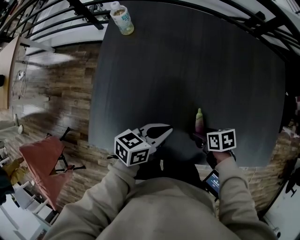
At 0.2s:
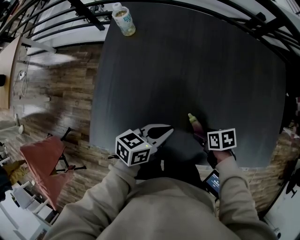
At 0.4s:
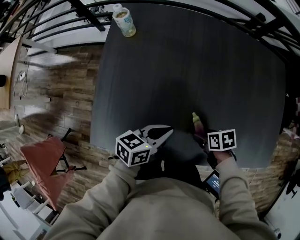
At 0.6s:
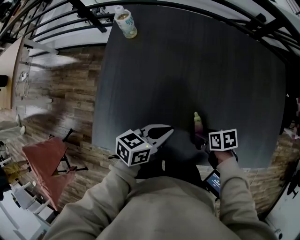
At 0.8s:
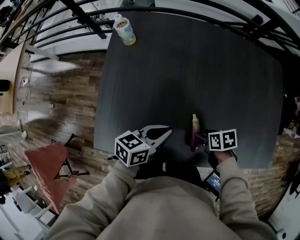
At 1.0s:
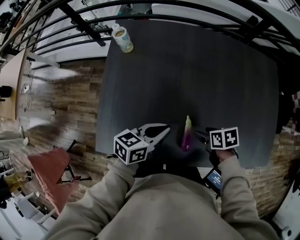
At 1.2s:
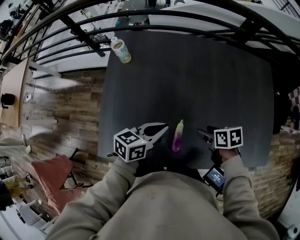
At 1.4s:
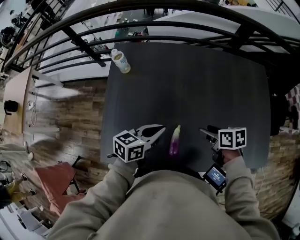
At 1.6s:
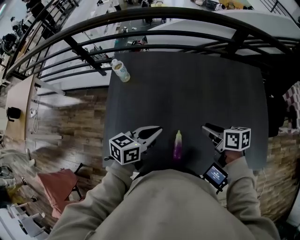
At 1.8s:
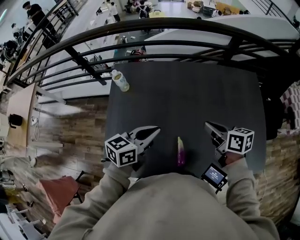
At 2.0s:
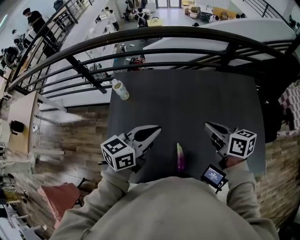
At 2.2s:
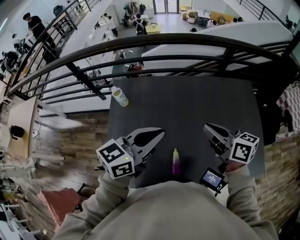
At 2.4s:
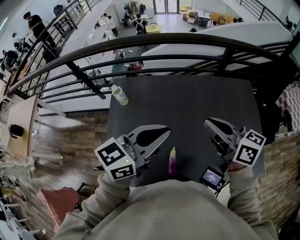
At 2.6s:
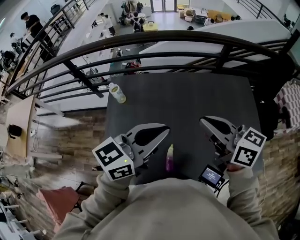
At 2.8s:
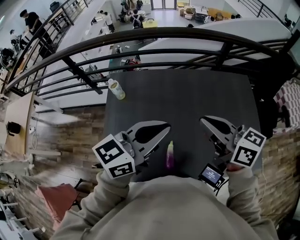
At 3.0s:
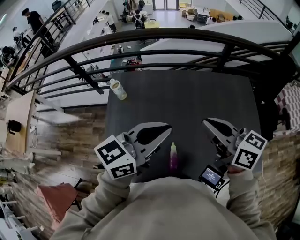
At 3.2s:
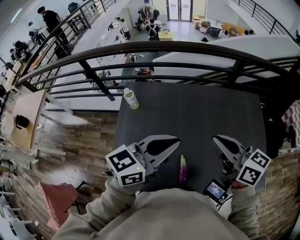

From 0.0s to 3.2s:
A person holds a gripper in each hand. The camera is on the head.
From 0.0s to 1.6s: The left gripper heads upward, covering some 10 cm, while the right gripper is displaced upward by about 20 cm, rotates approximately 30 degrees, and closes.
From 1.6s to 3.2s: The grippers both shift upward by about 20 cm. The right gripper changes its angle by about 30 degrees, and closes up. The left gripper changes its angle by roughly 20 degrees.

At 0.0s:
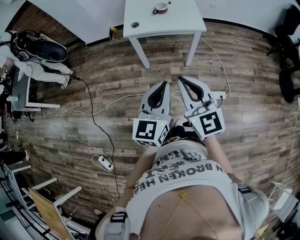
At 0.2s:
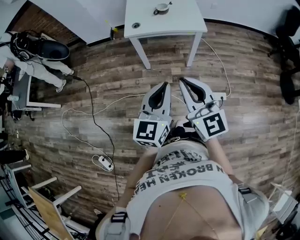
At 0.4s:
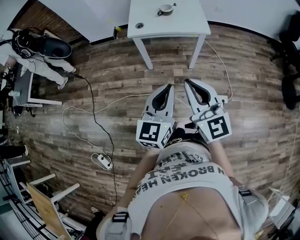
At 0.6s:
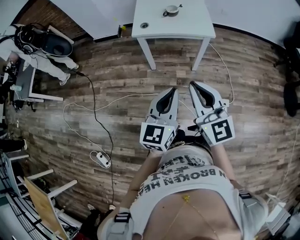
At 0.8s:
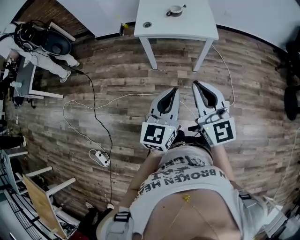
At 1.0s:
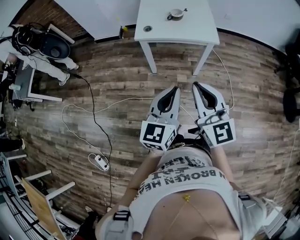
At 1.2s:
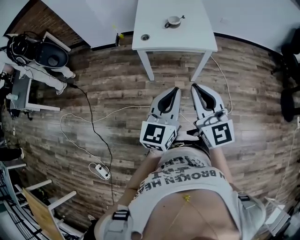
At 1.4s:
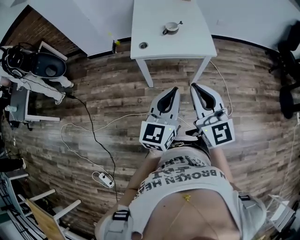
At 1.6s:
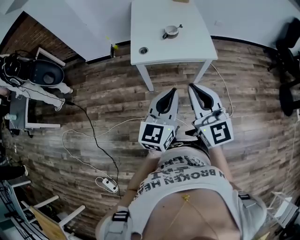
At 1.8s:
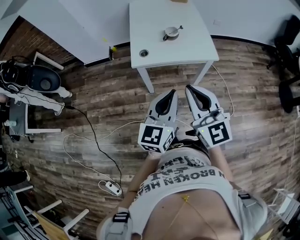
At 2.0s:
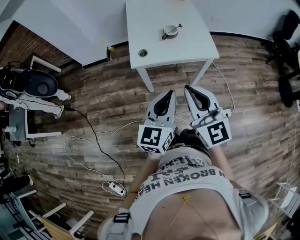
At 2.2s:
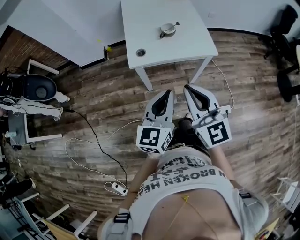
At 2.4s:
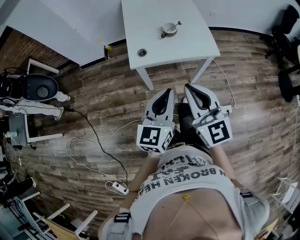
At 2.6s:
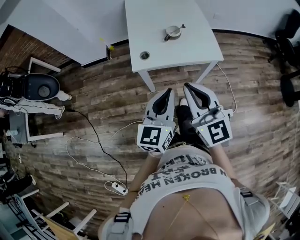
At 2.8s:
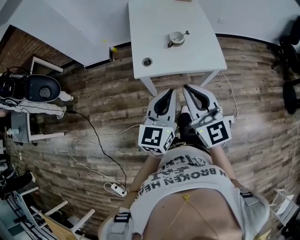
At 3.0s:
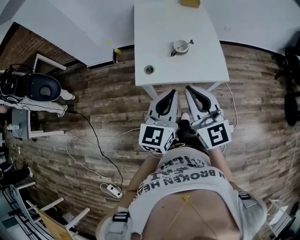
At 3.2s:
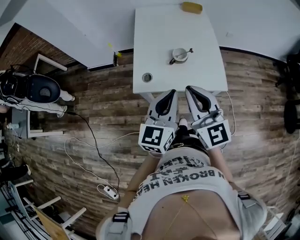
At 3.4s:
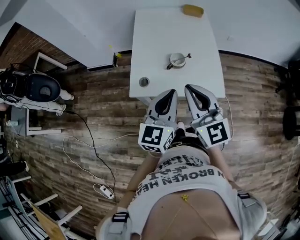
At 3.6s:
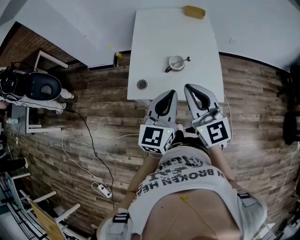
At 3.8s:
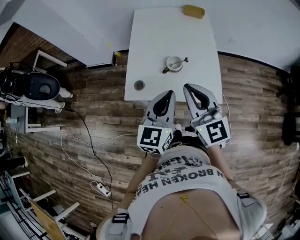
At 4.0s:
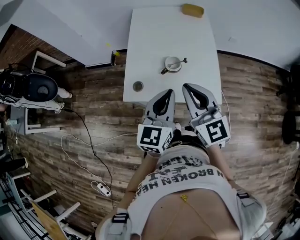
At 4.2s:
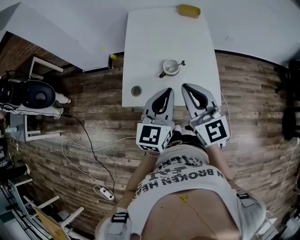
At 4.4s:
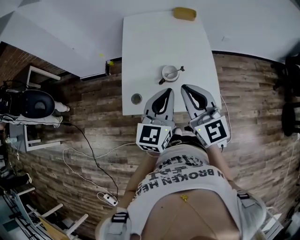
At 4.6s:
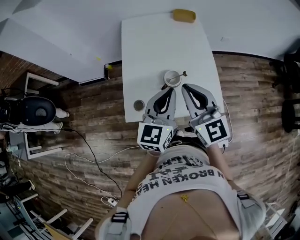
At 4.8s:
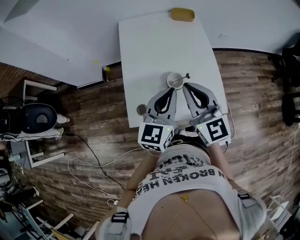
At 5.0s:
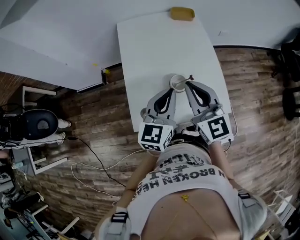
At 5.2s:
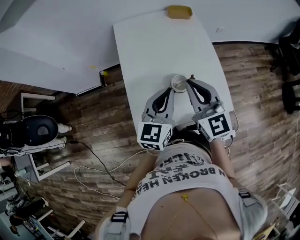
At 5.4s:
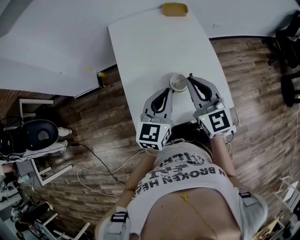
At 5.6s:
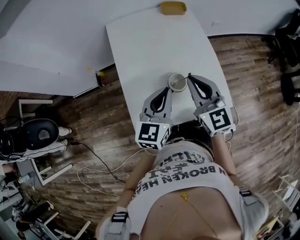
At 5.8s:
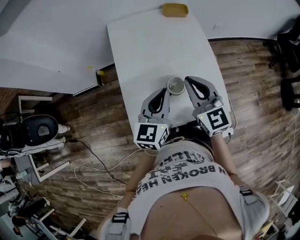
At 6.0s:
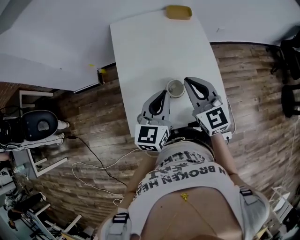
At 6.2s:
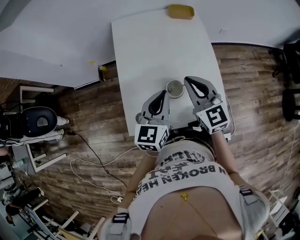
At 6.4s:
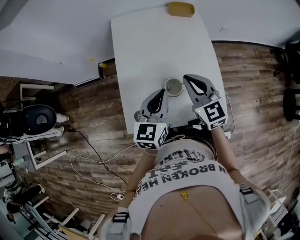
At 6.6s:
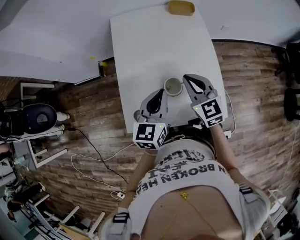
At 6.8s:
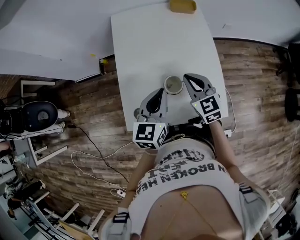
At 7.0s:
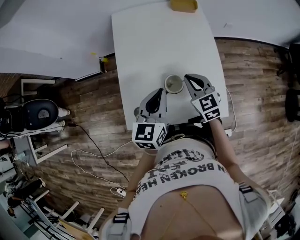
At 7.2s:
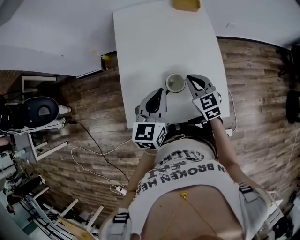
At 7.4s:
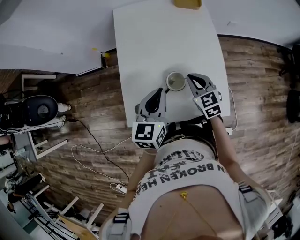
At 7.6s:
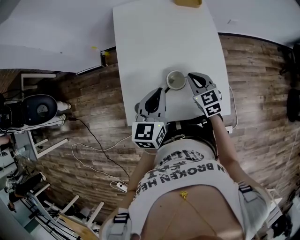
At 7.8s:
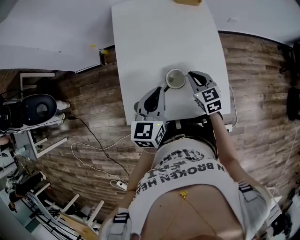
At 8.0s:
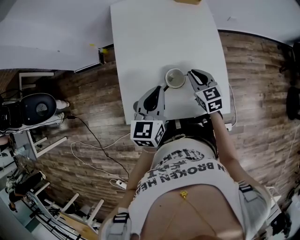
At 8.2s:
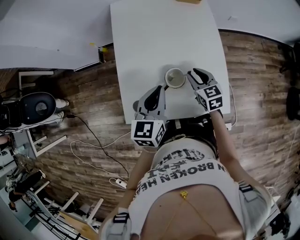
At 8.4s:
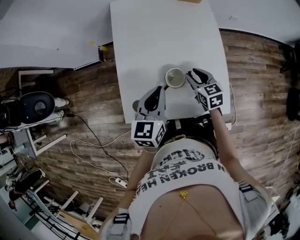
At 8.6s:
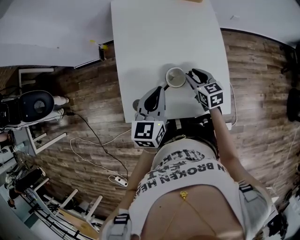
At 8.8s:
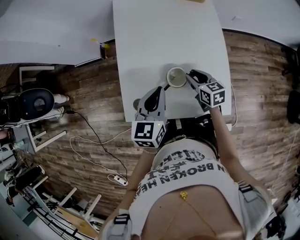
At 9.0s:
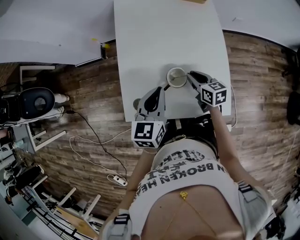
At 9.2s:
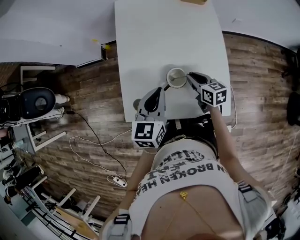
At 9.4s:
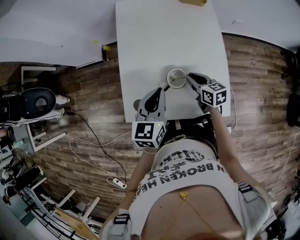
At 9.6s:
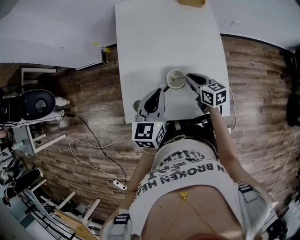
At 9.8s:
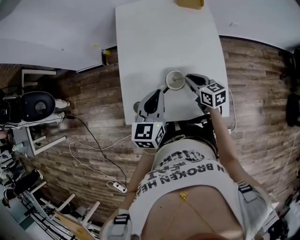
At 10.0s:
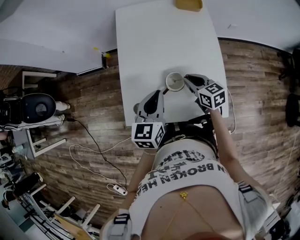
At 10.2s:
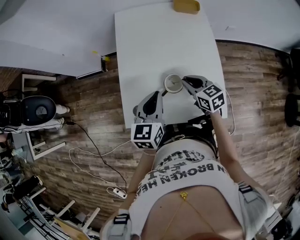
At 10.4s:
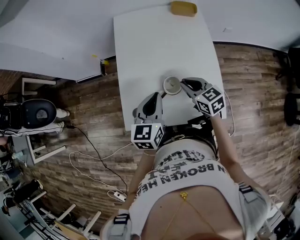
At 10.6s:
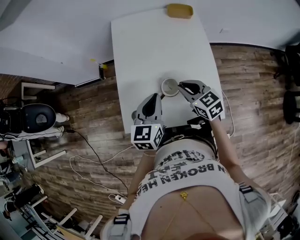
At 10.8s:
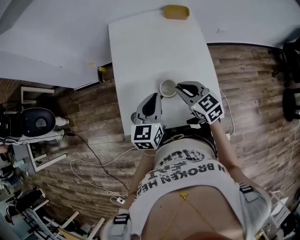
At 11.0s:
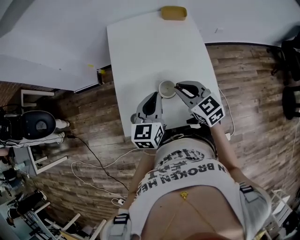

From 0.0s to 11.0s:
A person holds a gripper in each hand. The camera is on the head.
From 0.0s to 1.6s: Both grippers move forward, approximately 20 cm.
From 1.6s to 3.2s: The grippers both shift forward by about 25 cm.
From 3.2s to 4.8s: The two grippers go some 20 cm forward.
From 4.8s to 6.2s: The right gripper travels forward and downward by approximately 10 cm, while the left gripper travels forward by some 5 cm.
From 6.2s to 7.8s: The right gripper heads downward, covering some 15 cm, and changes its angle by approximately 20 degrees.
From 7.8s to 9.4s: The right gripper rotates some 30 degrees, and opens and closes again.
From 9.4s to 11.0s: The right gripper goes some 15 cm upward, and swivels roughly 30 degrees.

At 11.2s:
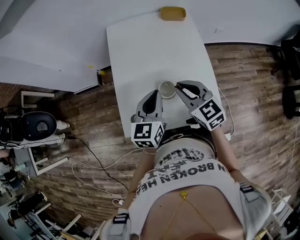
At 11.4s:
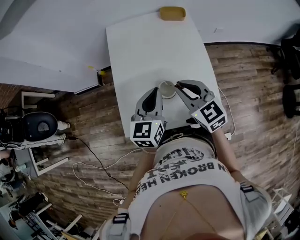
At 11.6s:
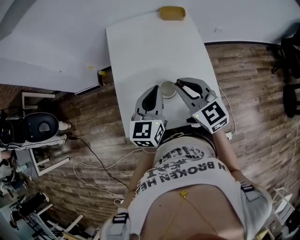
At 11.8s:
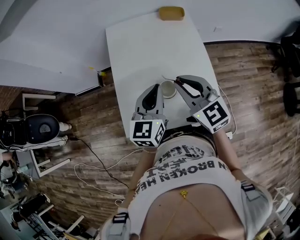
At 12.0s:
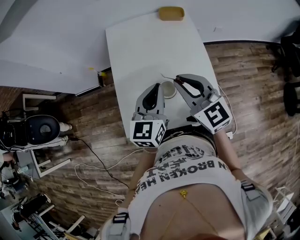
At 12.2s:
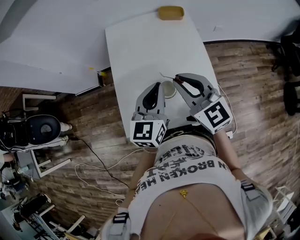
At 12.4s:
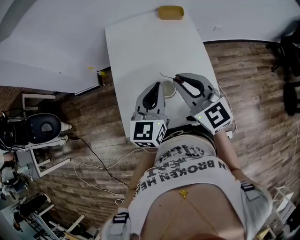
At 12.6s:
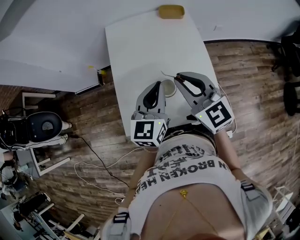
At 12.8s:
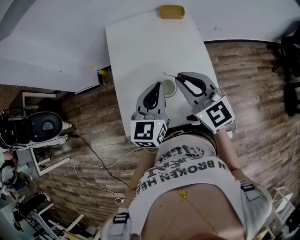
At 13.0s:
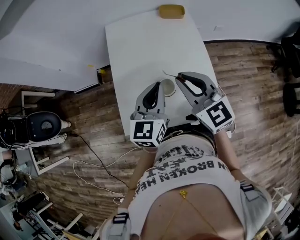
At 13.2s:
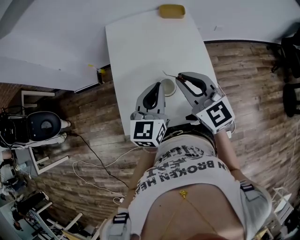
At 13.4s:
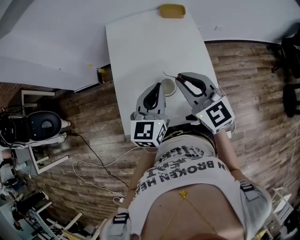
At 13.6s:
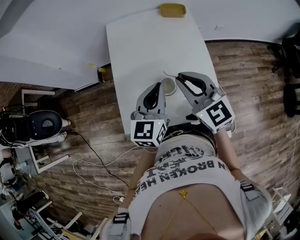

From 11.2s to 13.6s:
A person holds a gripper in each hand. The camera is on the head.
From 11.2s to 12.4s: The left gripper moves upward, approximately 5 cm. Meanwhile the right gripper is displaced upward by some 10 cm.
From 12.4s to 13.6s: Both grippers stay about where they are.

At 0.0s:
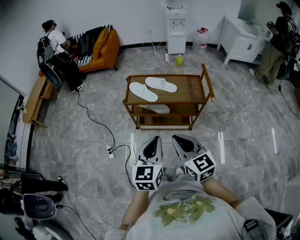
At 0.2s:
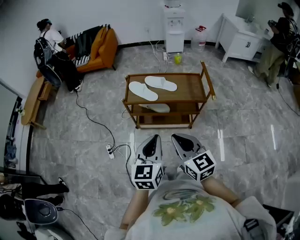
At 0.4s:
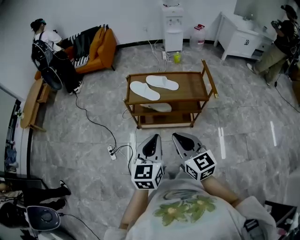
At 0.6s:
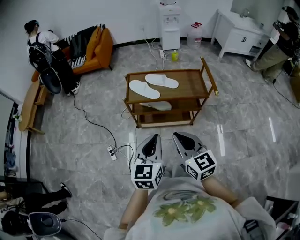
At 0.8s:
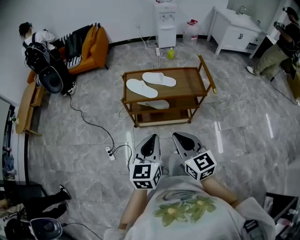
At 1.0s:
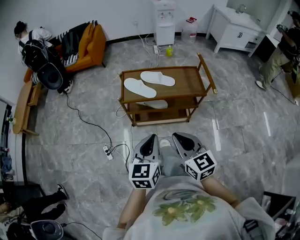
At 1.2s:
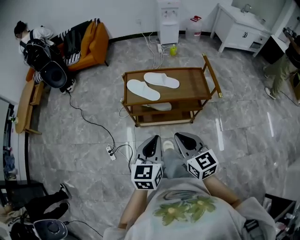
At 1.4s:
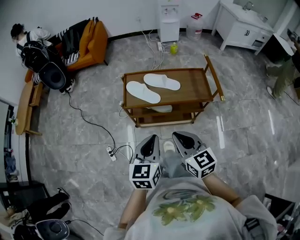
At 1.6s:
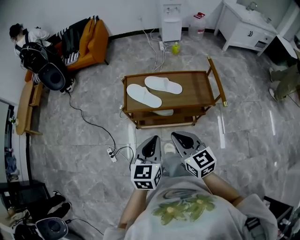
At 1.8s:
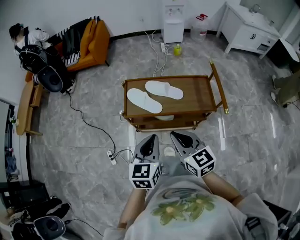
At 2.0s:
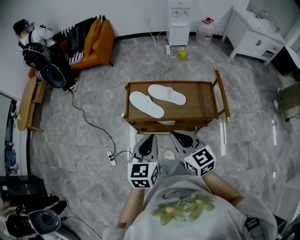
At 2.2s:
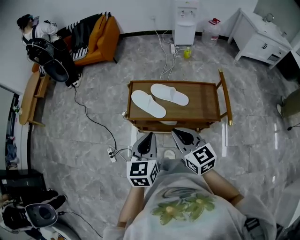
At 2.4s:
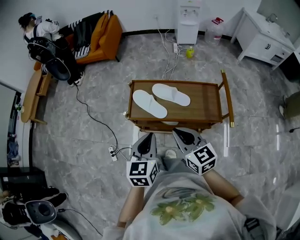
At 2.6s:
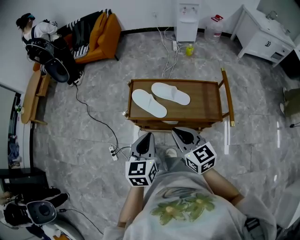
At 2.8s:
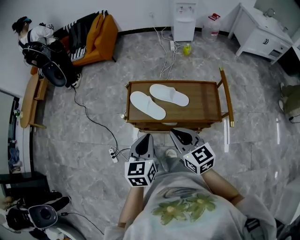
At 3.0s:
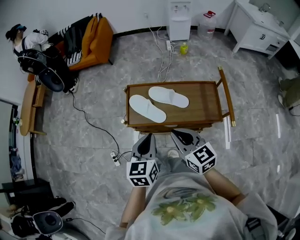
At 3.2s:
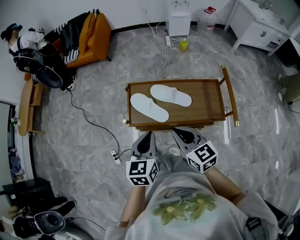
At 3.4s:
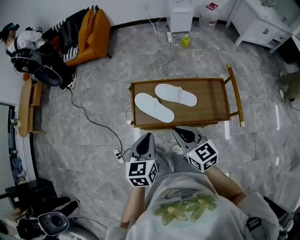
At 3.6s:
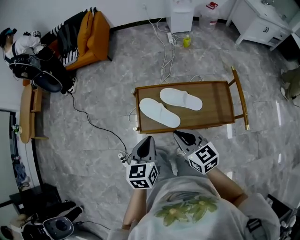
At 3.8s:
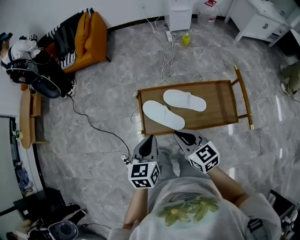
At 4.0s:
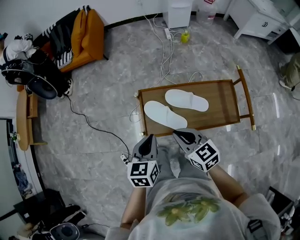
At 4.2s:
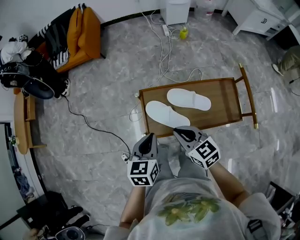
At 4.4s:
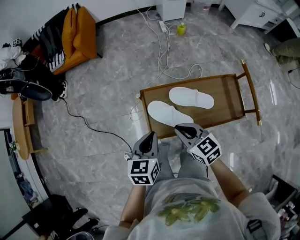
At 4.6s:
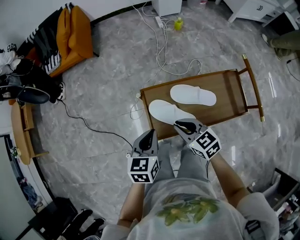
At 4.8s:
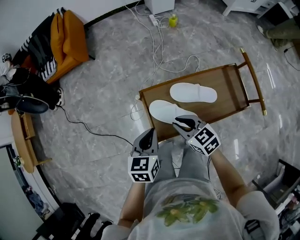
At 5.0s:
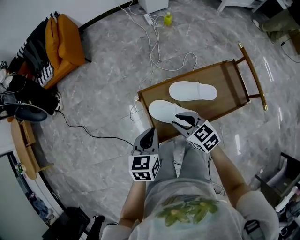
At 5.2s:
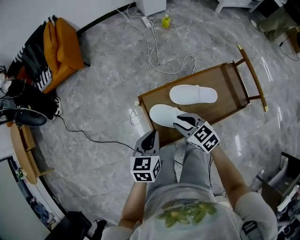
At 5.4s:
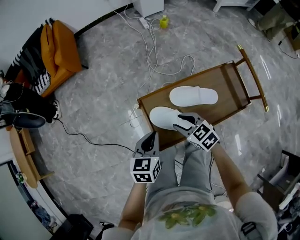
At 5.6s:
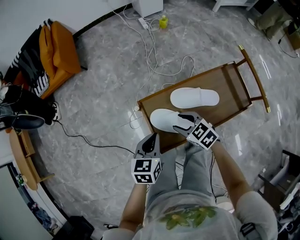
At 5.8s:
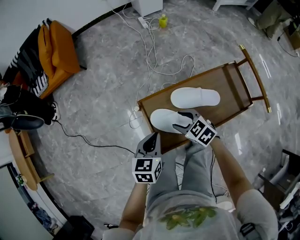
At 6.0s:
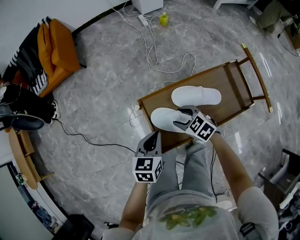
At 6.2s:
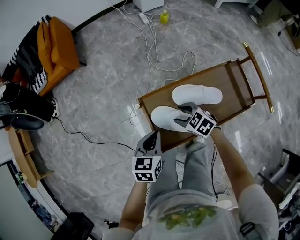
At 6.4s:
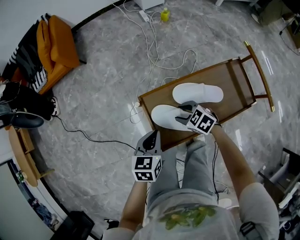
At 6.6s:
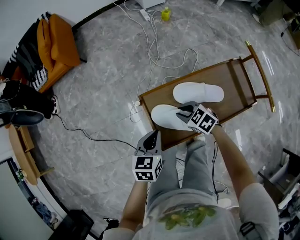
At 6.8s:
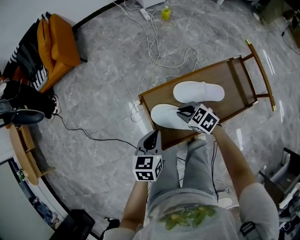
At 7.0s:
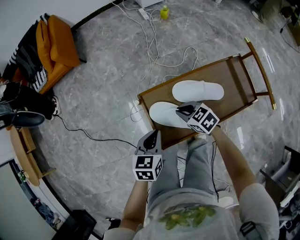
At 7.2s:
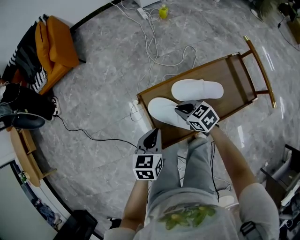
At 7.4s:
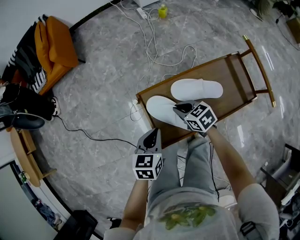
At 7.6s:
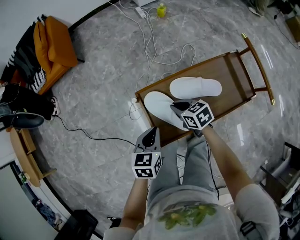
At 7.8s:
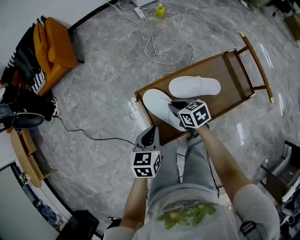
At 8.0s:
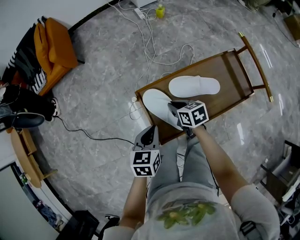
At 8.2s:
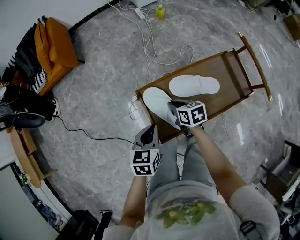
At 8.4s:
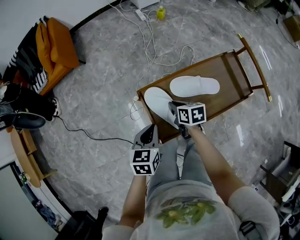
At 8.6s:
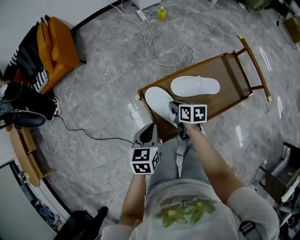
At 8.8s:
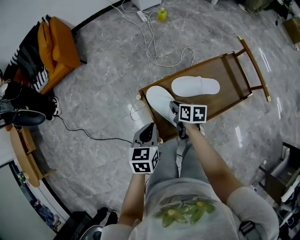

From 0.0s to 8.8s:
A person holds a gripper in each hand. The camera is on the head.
From 0.0s to 1.4s: The right gripper is displaced forward and downward by some 10 cm. The left gripper is displaced forward, downward and to the left by roughly 15 cm.
From 1.4s to 3.0s: The grippers both shift forward by some 15 cm.
From 3.0s to 4.4s: The grippers both shift forward, to the left and downward by about 20 cm.
From 4.4s to 5.8s: Both grippers move downward and forward, about 15 cm. The right gripper opens its fingers.
From 5.8s to 7.4s: The right gripper closes up.
From 7.4s to 8.8s: The right gripper twists approximately 40 degrees clockwise, seen from behind.
